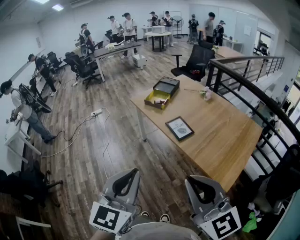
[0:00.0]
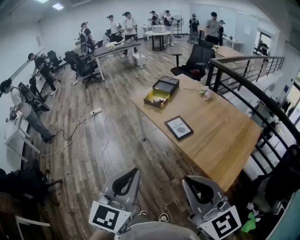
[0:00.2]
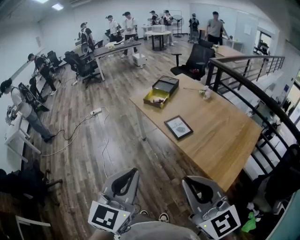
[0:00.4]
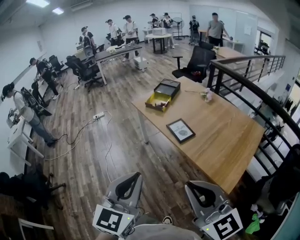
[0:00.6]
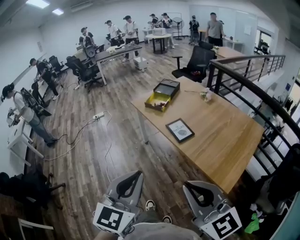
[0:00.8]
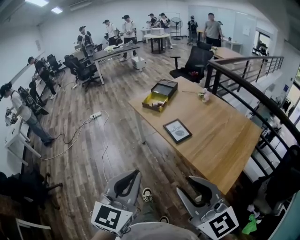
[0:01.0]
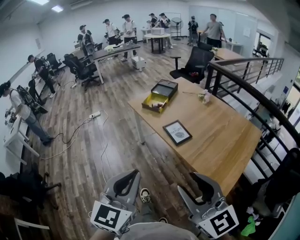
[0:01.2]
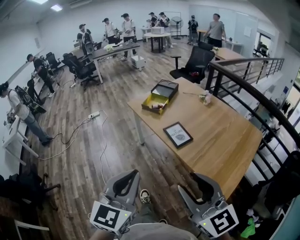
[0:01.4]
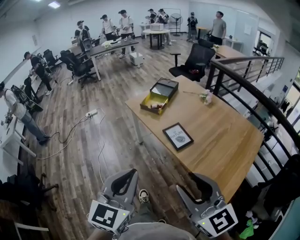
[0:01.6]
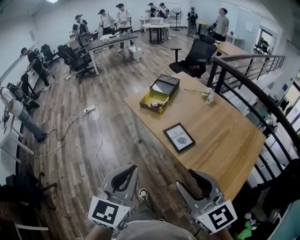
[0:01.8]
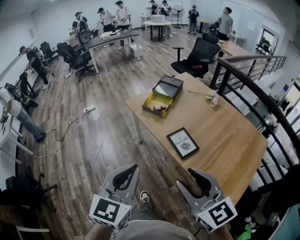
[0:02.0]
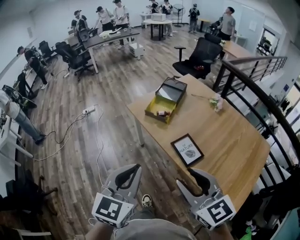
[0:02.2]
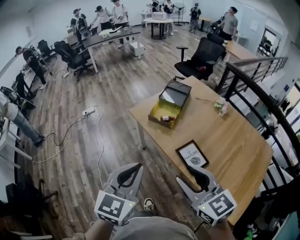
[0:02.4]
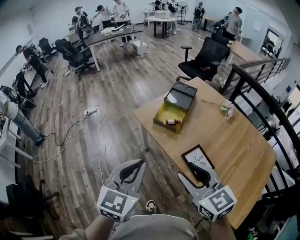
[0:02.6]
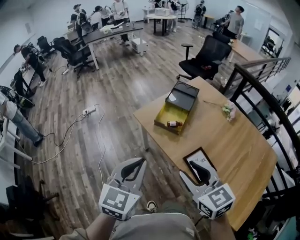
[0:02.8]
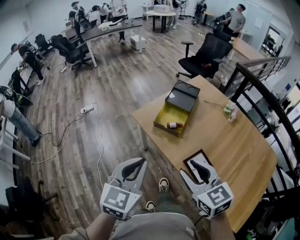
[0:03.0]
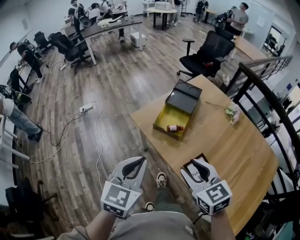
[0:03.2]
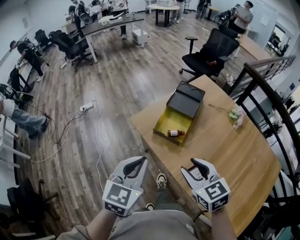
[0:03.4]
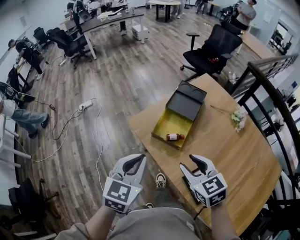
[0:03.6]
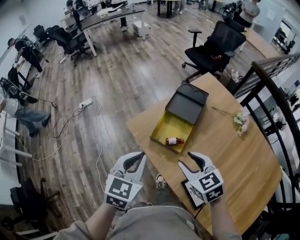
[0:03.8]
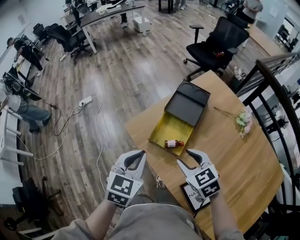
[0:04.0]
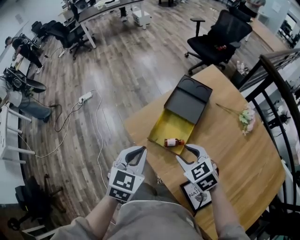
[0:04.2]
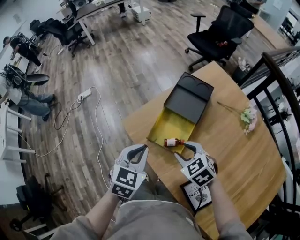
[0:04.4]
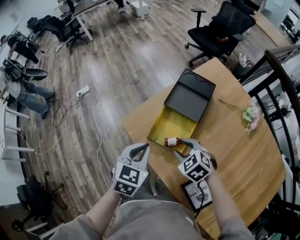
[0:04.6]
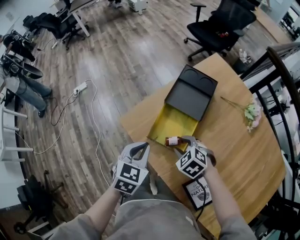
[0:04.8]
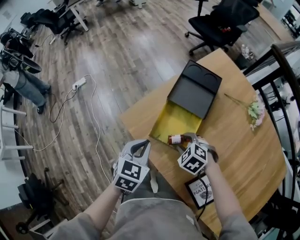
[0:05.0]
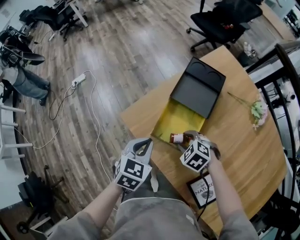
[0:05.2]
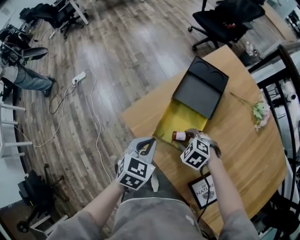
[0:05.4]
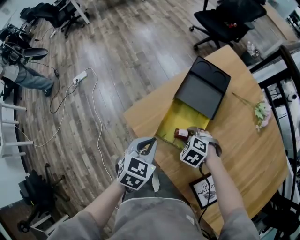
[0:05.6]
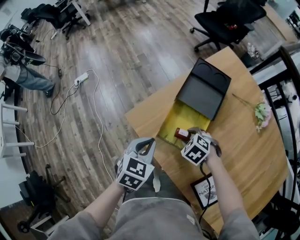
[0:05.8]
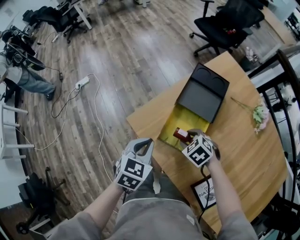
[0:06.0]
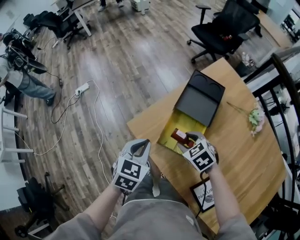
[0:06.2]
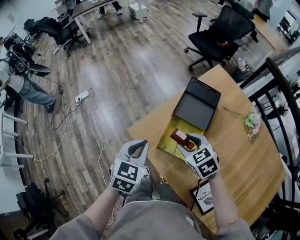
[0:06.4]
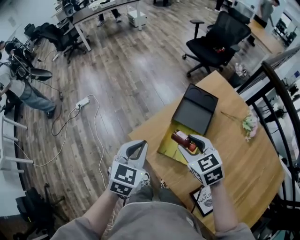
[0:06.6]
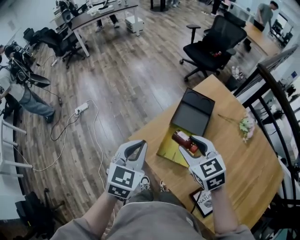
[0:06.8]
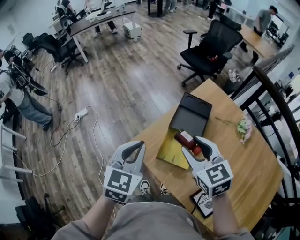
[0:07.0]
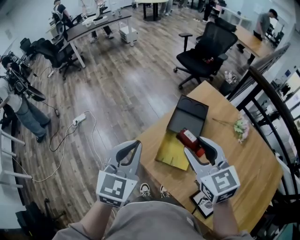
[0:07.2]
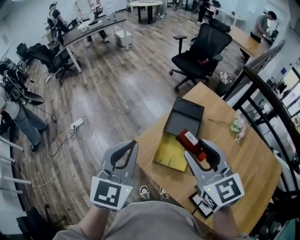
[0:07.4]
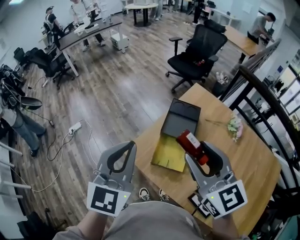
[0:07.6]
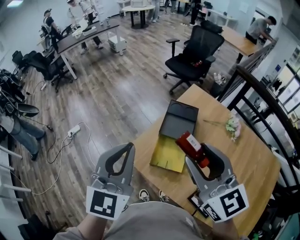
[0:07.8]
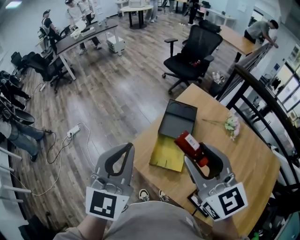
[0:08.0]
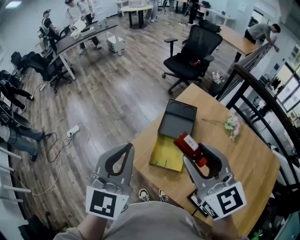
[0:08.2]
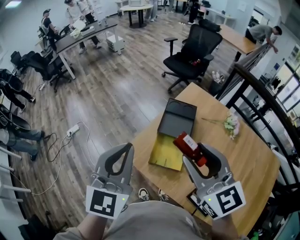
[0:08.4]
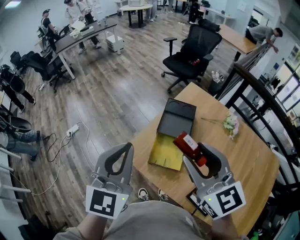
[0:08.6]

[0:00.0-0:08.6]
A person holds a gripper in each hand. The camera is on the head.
0.0 to 1.4 s: Both grippers travel together forward, roughly 5 cm. The right gripper opens up.
1.4 to 2.8 s: Both grippers are carried forward, some 40 cm. The right gripper turns by approximately 20 degrees.
2.8 to 4.4 s: The grippers both shift forward and downward by approximately 35 cm. The left gripper turns by about 20 degrees, while the right gripper points its fingers about 30 degrees further downward.
4.4 to 5.8 s: Both grippers travel together downward, some 10 cm. The right gripper swivels about 30 degrees.
5.8 to 7.2 s: The grippers both shift upward by some 30 cm. The right gripper angles its fingers upward, by some 50 degrees; the left gripper changes its angle by some 30 degrees.
7.2 to 8.6 s: Both grippers move upward, about 10 cm.

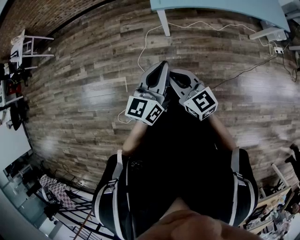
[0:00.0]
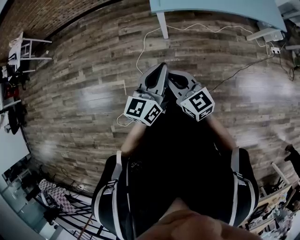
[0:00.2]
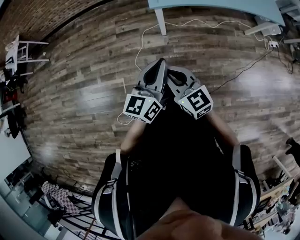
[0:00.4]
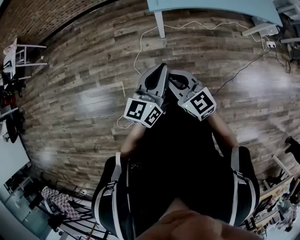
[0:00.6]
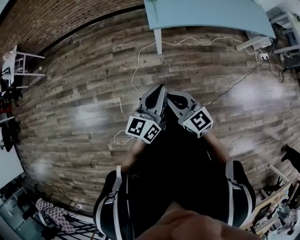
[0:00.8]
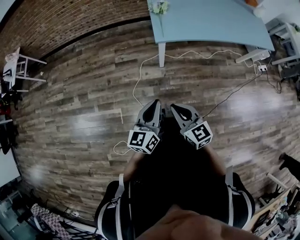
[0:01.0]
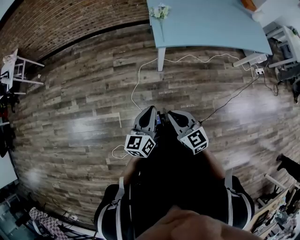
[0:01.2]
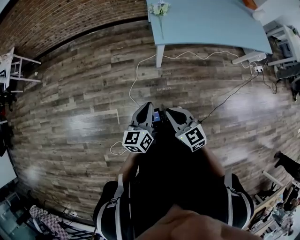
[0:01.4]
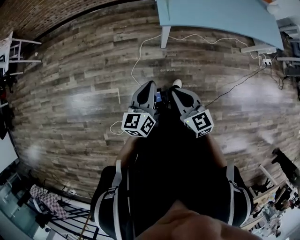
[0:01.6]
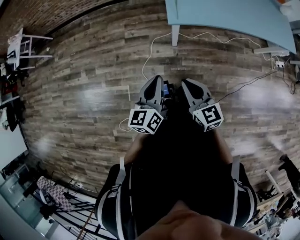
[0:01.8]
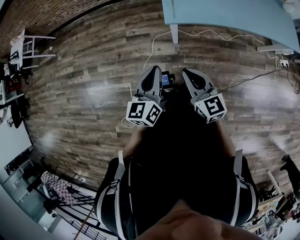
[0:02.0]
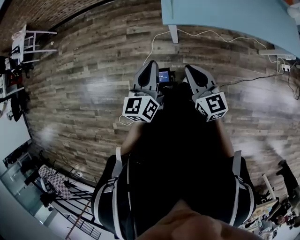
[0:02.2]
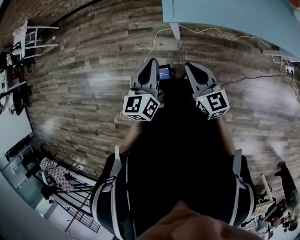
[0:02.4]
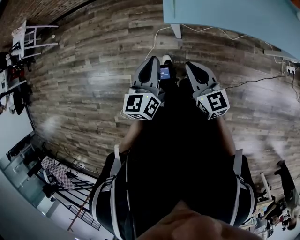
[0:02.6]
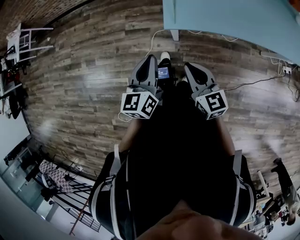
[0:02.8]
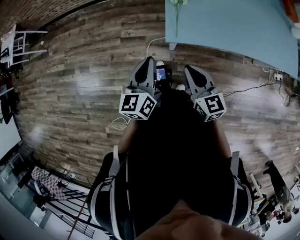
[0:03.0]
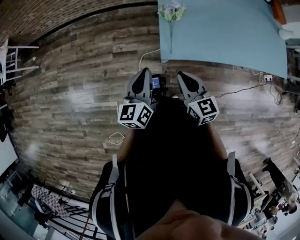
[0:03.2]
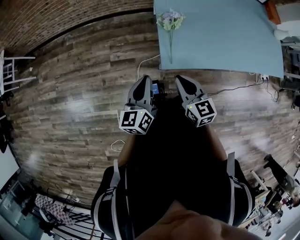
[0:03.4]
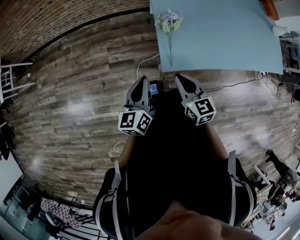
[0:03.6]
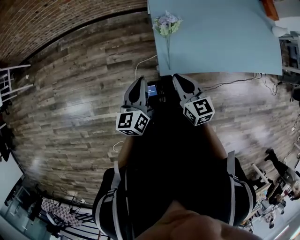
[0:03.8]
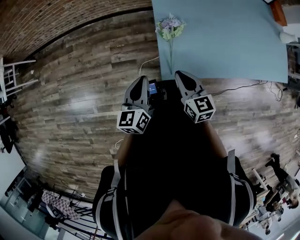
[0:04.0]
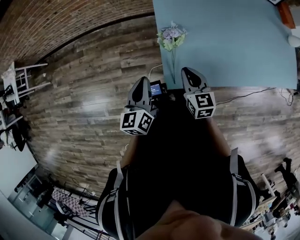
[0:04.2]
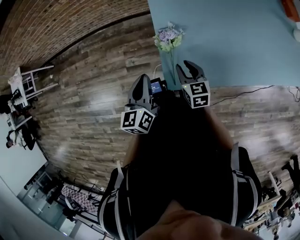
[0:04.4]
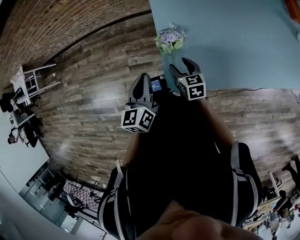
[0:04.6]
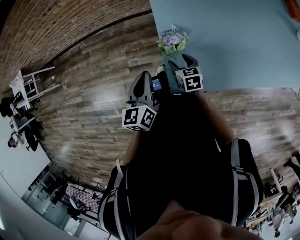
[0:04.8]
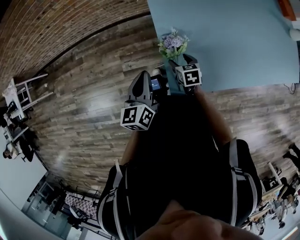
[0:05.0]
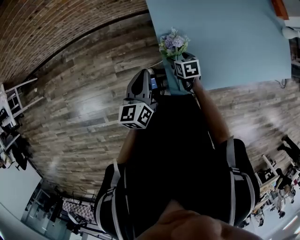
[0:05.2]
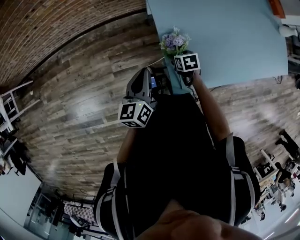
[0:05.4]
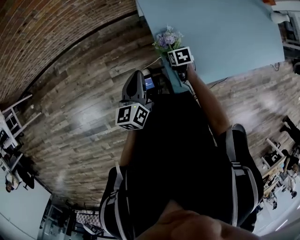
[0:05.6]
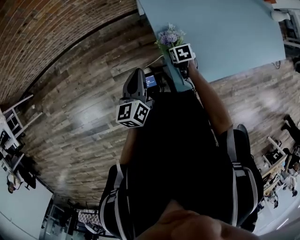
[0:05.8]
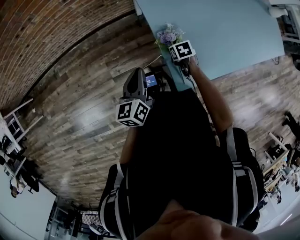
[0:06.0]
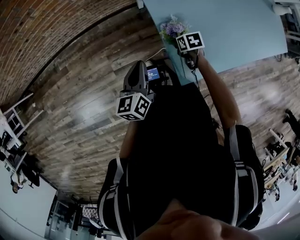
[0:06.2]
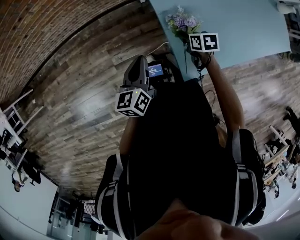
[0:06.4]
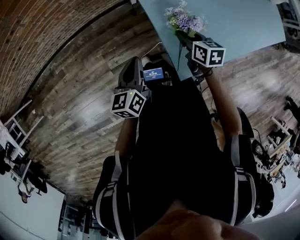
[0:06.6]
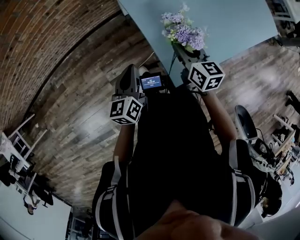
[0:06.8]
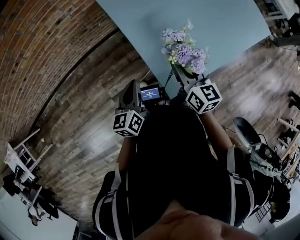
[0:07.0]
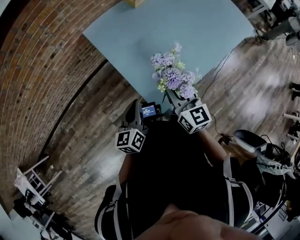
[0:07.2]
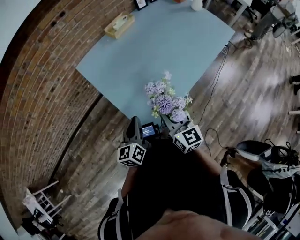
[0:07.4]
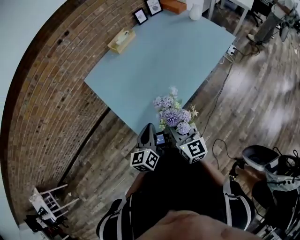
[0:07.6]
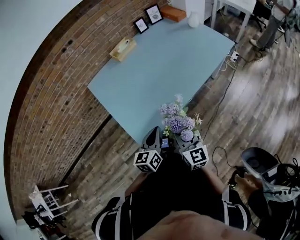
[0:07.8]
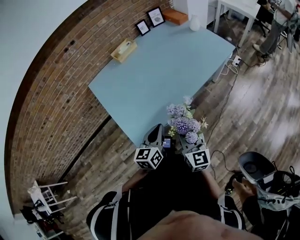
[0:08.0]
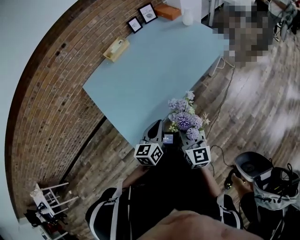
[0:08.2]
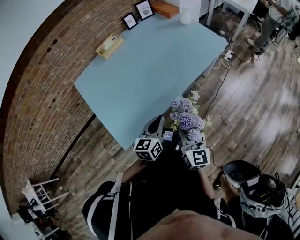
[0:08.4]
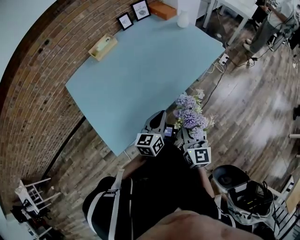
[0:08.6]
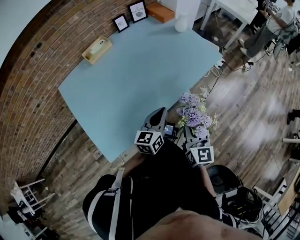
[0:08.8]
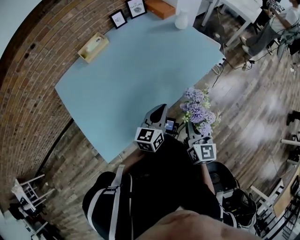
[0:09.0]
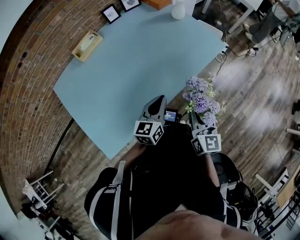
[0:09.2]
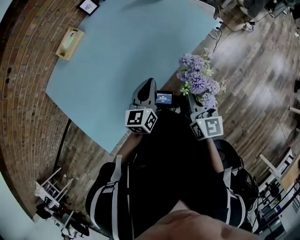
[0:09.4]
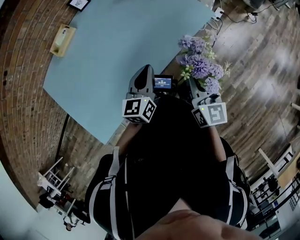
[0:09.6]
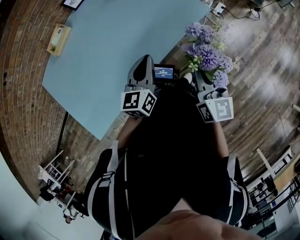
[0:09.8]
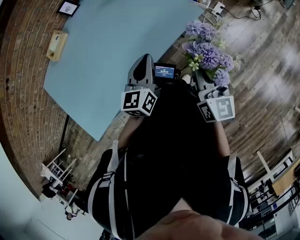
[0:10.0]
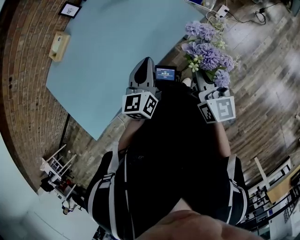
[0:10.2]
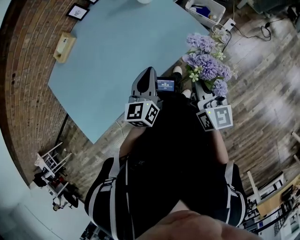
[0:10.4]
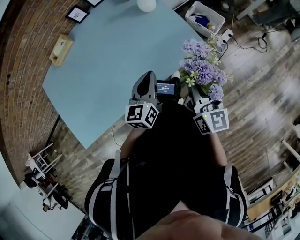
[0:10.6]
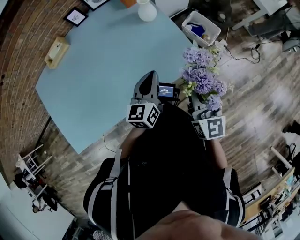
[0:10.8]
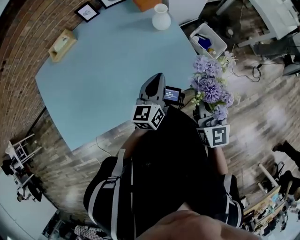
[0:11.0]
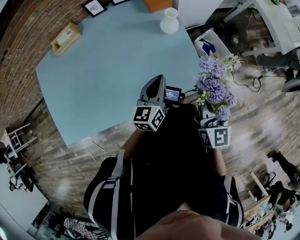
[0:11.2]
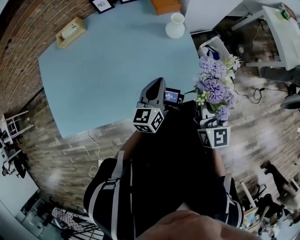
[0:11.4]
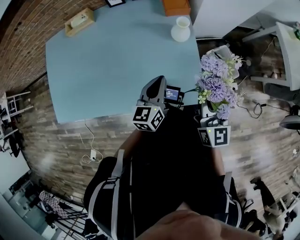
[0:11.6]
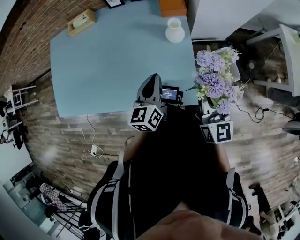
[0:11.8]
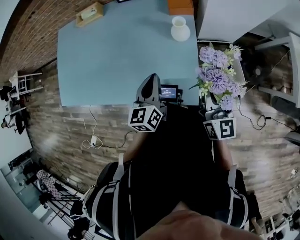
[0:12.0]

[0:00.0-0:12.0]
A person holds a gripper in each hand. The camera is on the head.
0.0 to 1.6 s: The left gripper travels to the left, forward and downward by about 15 cm. The right gripper shifts roughly 5 cm forward.
1.6 to 3.0 s: The left gripper goes approximately 25 cm forward. Meanwhile the right gripper goes roughly 25 cm forward and to the right.
3.0 to 4.4 s: The two grippers go some 25 cm forward.
4.4 to 6.0 s: The right gripper moves downward and forward, some 20 cm, points its fingers roughly 40 degrees further downward, and opens, then closes again. The left gripper travels forward and to the left by approximately 15 cm.
6.0 to 7.6 s: The left gripper ends up about 35 cm from where it was, and changes its angle by roughly 30 degrees. Meanwhile the right gripper ends up some 50 cm from where it was, and tips its fingers upward by about 60 degrees.
7.6 to 9.0 s: Both grippers move to the right and forward, about 40 cm.
9.0 to 10.4 s: Both grippers travel together to the right and forward, some 40 cm.
10.4 to 12.0 s: The right gripper ends up approximately 35 cm from where it was, and turns by roughly 40 degrees. The left gripper shifts by some 25 cm, and rotates about 40 degrees.

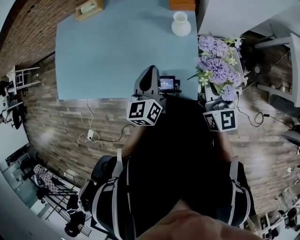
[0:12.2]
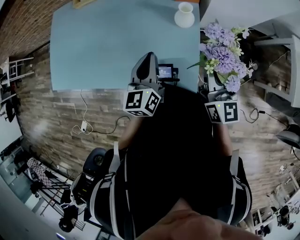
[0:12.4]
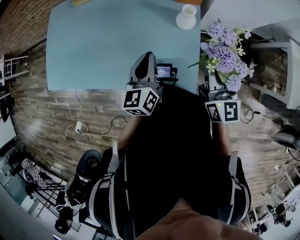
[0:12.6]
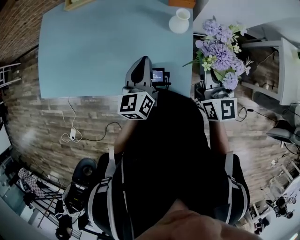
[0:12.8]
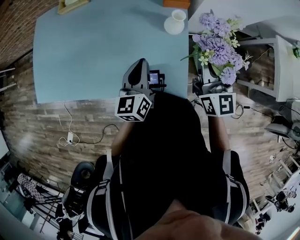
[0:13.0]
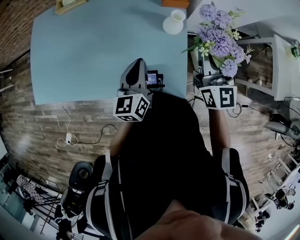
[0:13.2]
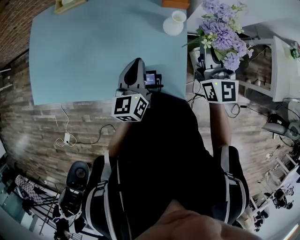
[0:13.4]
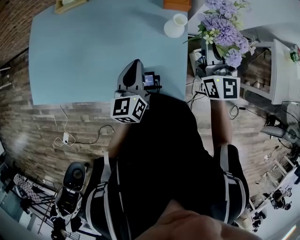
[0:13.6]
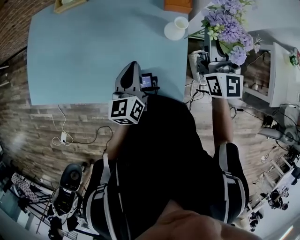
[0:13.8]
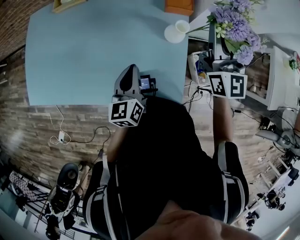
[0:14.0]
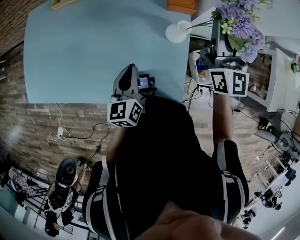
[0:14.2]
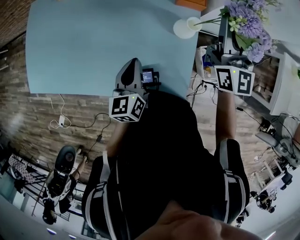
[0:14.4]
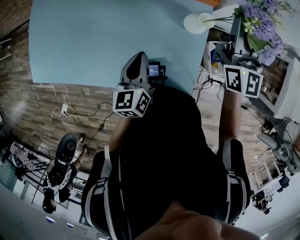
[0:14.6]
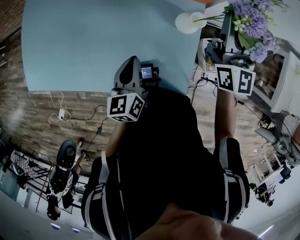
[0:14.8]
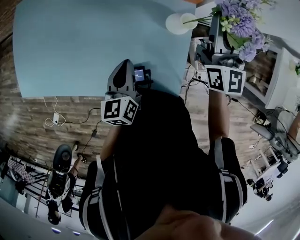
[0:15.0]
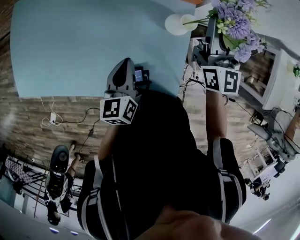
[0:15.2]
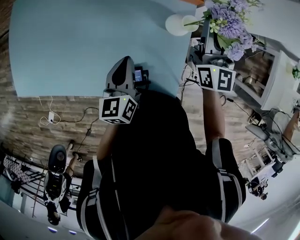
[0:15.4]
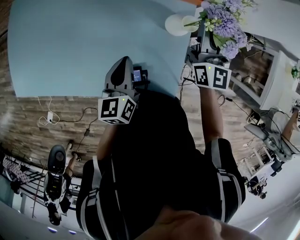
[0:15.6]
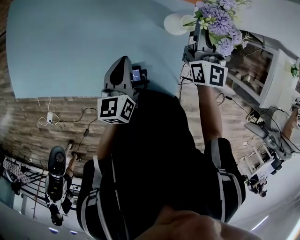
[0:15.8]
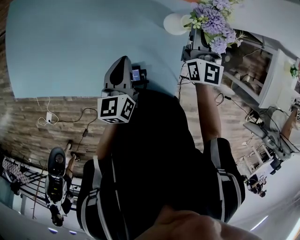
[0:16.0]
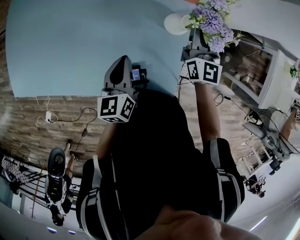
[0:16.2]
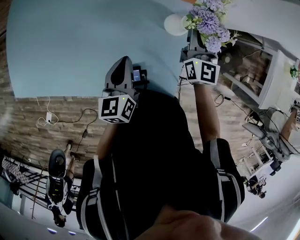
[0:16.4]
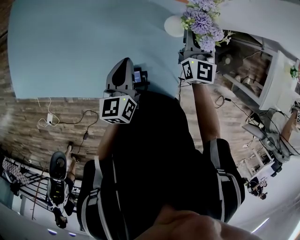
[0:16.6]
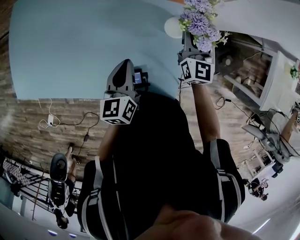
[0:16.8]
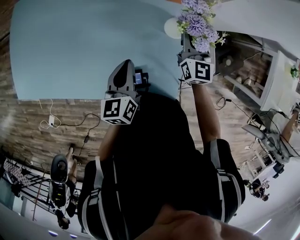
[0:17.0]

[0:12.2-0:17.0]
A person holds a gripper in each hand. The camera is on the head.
12.2 to 13.8 s: The right gripper is displaced forward and upward by some 20 cm. Meanwhile the left gripper travels to the left and forward by some 10 cm.
13.8 to 15.4 s: The left gripper shifts approximately 5 cm downward, while the right gripper is displaced downward and forward by roughly 15 cm.
15.4 to 17.0 s: The right gripper moves downward, roughly 10 cm.
